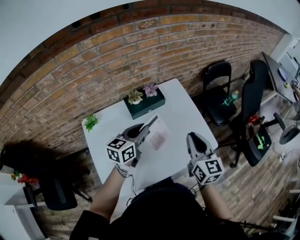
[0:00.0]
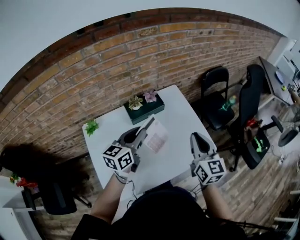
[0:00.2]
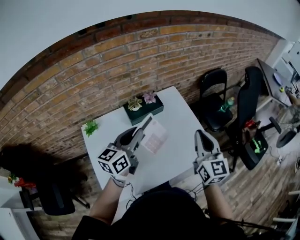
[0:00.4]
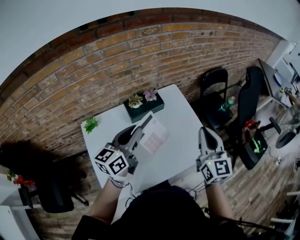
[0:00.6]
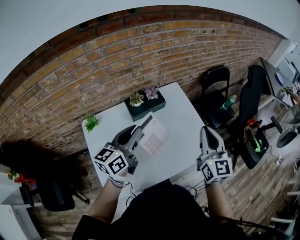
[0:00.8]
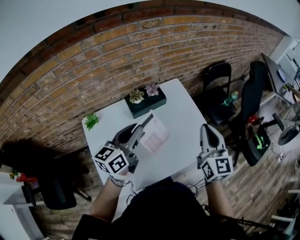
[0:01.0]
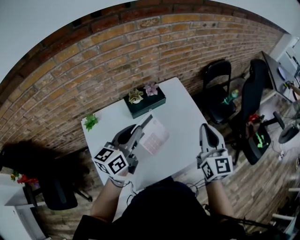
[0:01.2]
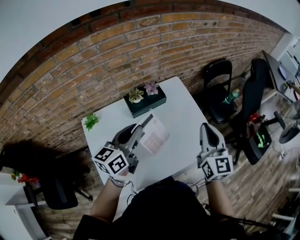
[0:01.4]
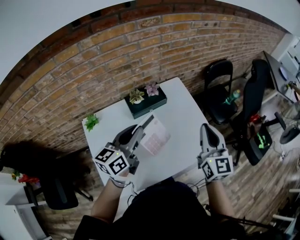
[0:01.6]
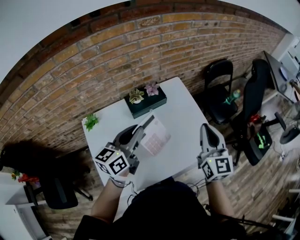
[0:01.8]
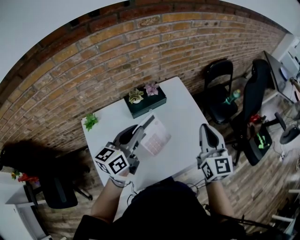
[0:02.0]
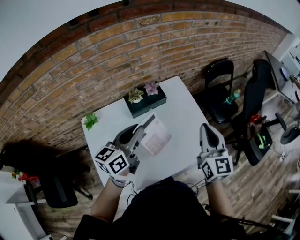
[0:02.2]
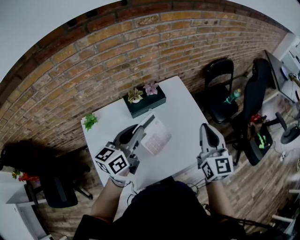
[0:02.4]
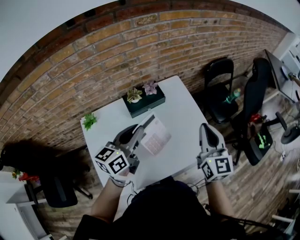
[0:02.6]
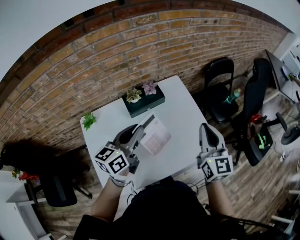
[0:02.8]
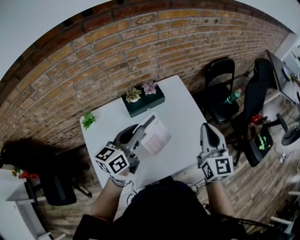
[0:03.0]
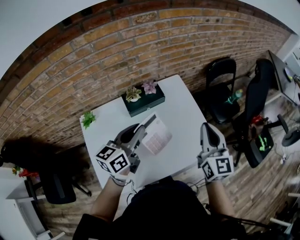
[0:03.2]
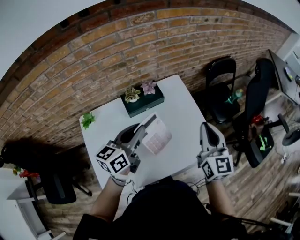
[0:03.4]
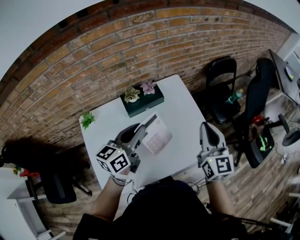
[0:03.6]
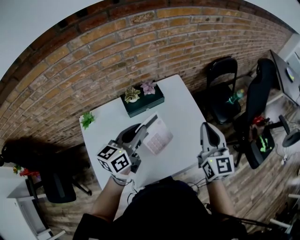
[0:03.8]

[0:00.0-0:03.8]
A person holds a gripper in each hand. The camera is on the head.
0.0 to 1.2 s: Both grippers travel together upward, some 5 cm.
1.2 to 2.6 s: The grippers move only a little.
2.6 to 3.8 s: There are only small adjustments of the grippers.

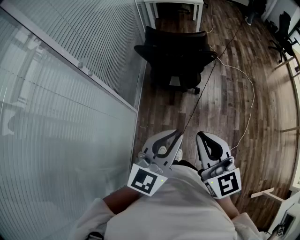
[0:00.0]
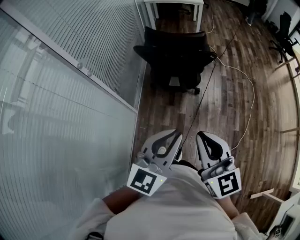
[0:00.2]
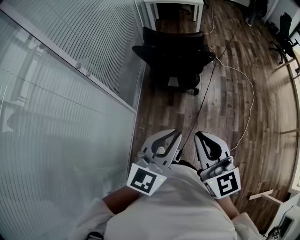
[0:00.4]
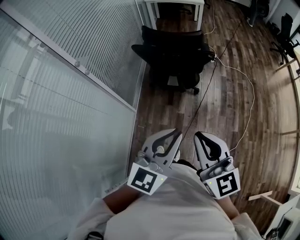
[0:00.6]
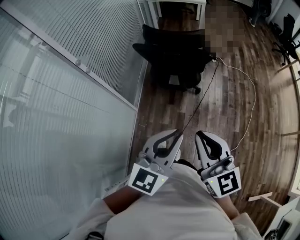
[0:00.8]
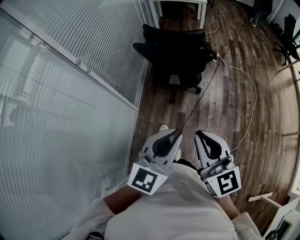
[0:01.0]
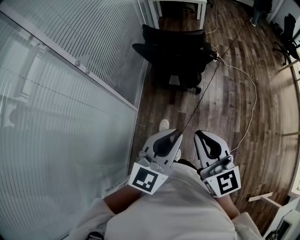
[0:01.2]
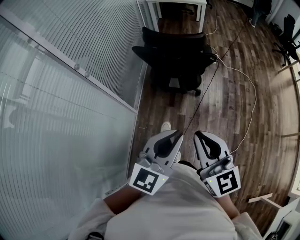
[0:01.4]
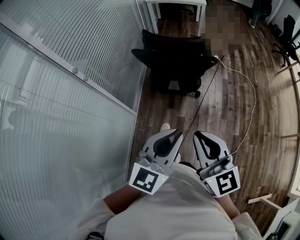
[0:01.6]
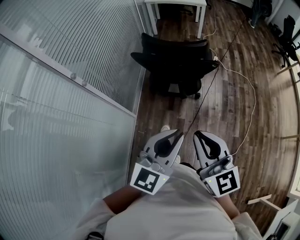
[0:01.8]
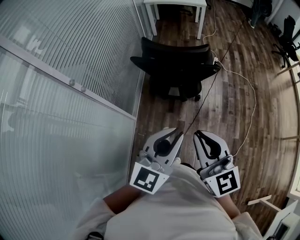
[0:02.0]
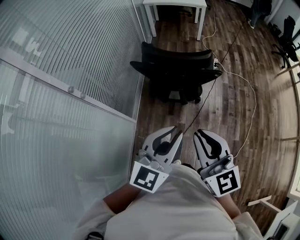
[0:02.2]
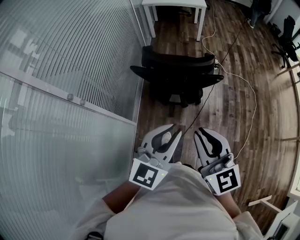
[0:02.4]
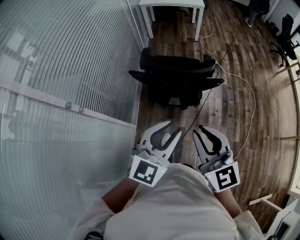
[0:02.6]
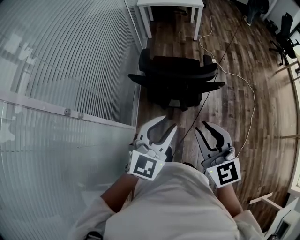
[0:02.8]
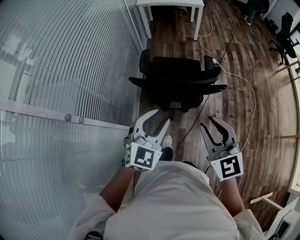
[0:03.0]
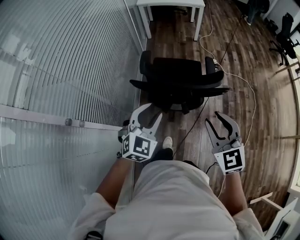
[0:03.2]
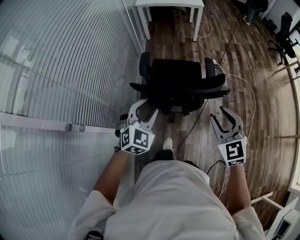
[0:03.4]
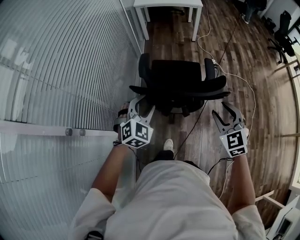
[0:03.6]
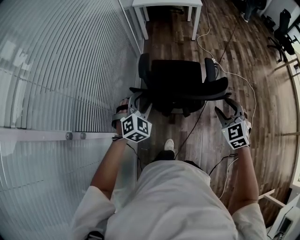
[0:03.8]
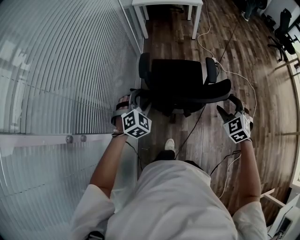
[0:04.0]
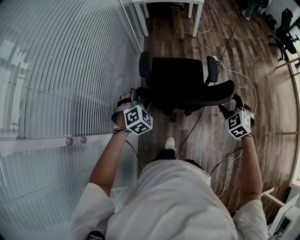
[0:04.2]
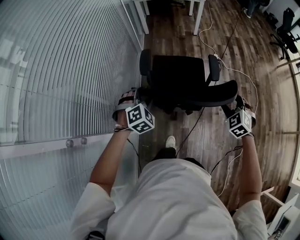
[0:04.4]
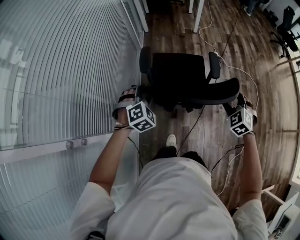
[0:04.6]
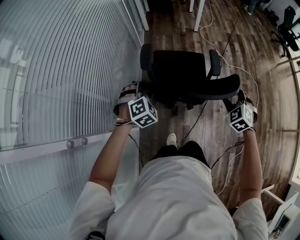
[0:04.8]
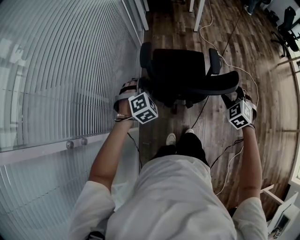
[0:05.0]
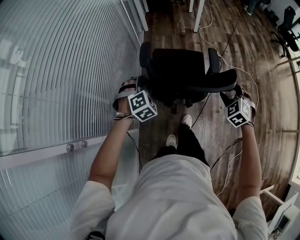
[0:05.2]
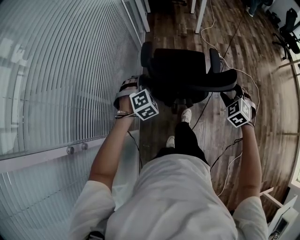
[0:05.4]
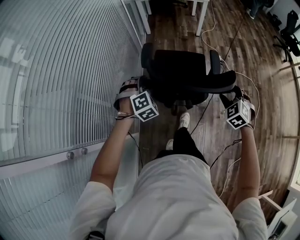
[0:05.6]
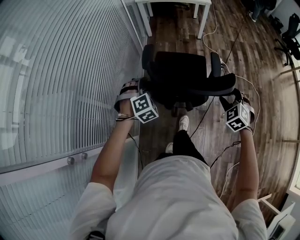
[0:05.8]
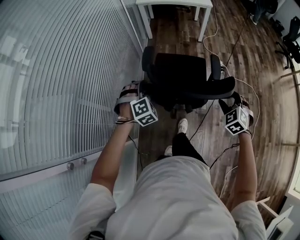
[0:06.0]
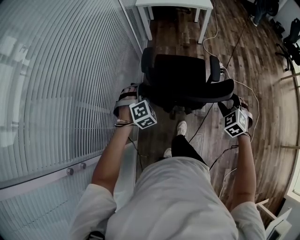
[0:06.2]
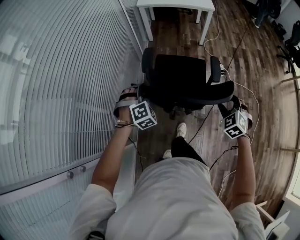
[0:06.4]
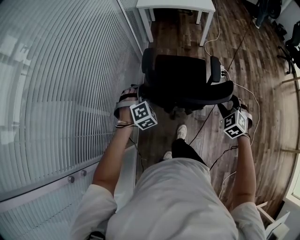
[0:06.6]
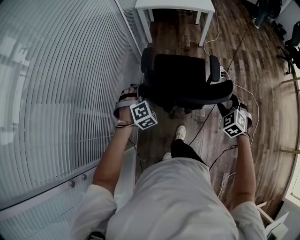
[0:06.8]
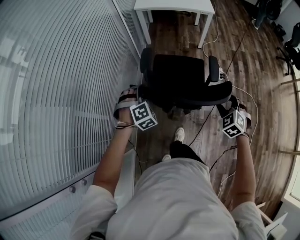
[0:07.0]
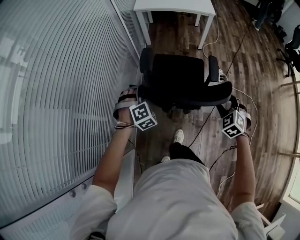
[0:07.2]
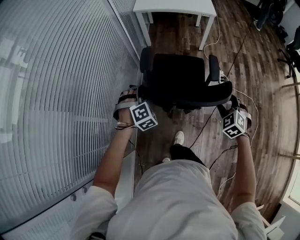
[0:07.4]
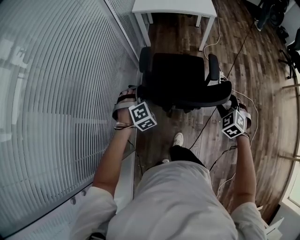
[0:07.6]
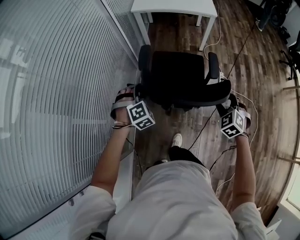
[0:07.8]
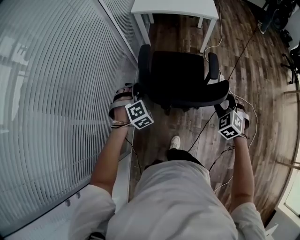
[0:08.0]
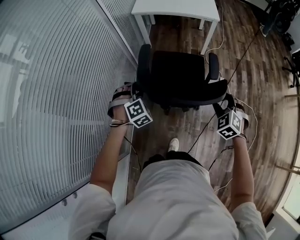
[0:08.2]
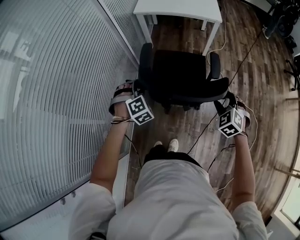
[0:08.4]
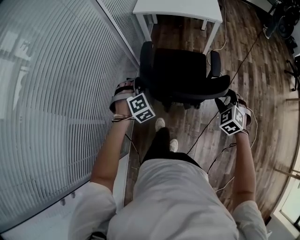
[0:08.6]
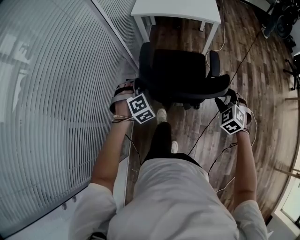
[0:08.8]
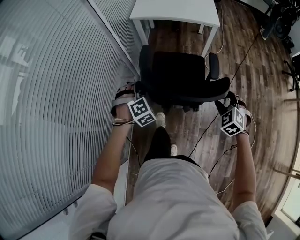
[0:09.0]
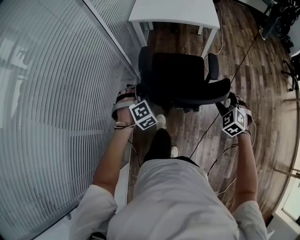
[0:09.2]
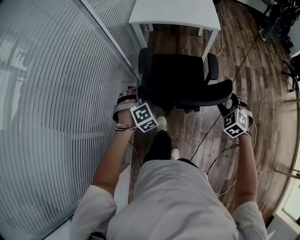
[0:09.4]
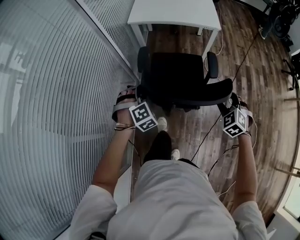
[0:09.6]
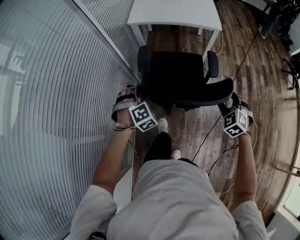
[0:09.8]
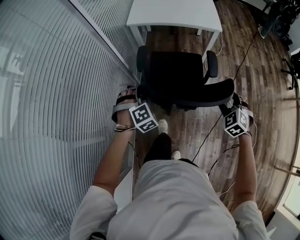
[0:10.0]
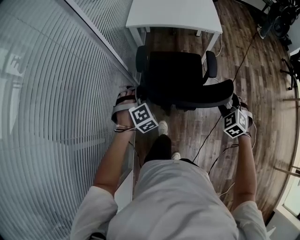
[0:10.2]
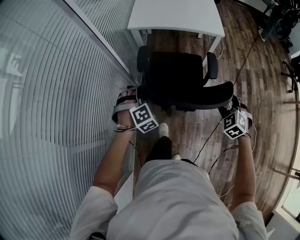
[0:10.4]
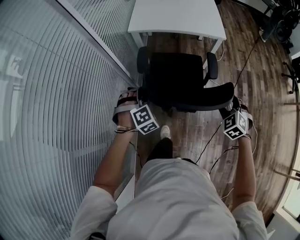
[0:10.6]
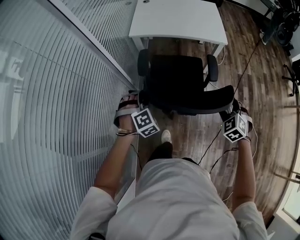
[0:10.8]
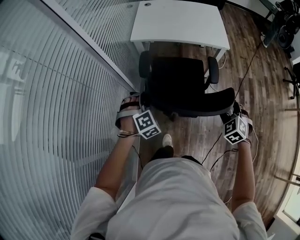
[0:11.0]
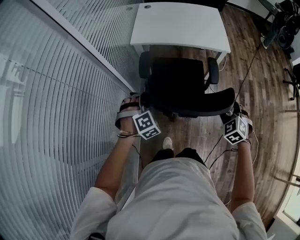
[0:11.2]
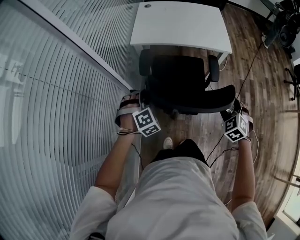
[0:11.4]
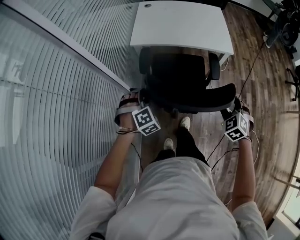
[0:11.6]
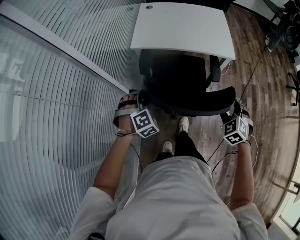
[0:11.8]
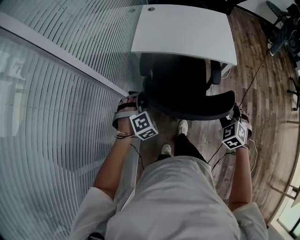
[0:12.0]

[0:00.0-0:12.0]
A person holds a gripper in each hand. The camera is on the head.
0.0 to 1.6 s: The left gripper moves roughly 5 cm. Meanwhile the right gripper is displaced forward by approximately 5 cm.
1.6 to 3.0 s: The two grippers go roughly 25 cm forward.
3.0 to 4.4 s: The right gripper shifts some 30 cm downward, forward and to the right, angles its fingers downward, by approximately 30 degrees, and opens; the left gripper is displaced forward, downward and to the left by approximately 25 cm, and changes its angle by roughly 40 degrees.
4.4 to 6.0 s: The two grippers go roughly 15 cm forward.
6.0 to 7.6 s: Both grippers move forward, approximately 20 cm.
7.6 to 9.0 s: The grippers both shift forward and to the right by some 15 cm.
9.0 to 10.4 s: Both grippers move forward, approximately 15 cm.
10.4 to 12.0 s: Both grippers travel together forward, some 20 cm.

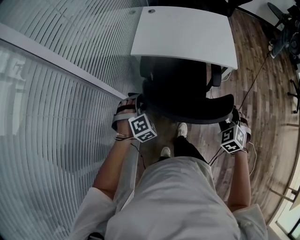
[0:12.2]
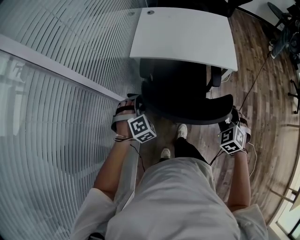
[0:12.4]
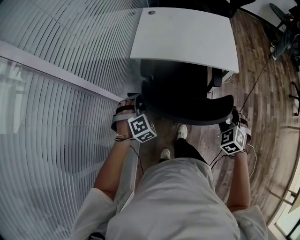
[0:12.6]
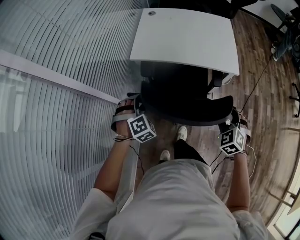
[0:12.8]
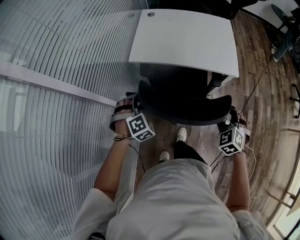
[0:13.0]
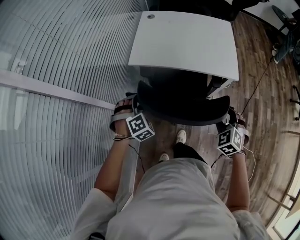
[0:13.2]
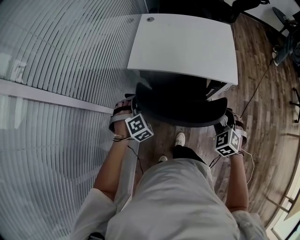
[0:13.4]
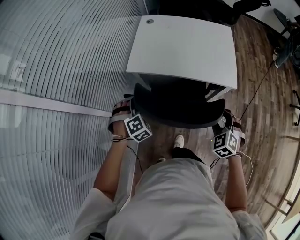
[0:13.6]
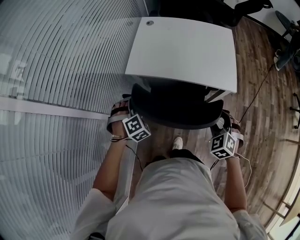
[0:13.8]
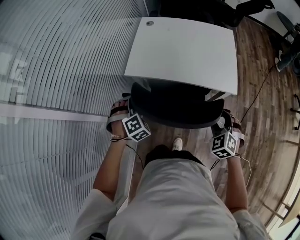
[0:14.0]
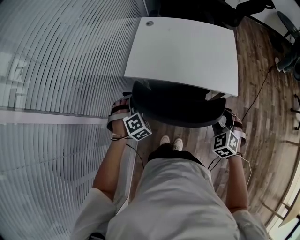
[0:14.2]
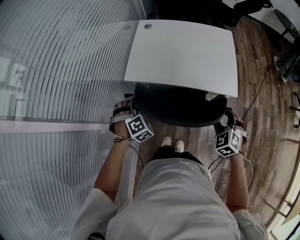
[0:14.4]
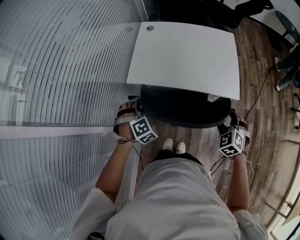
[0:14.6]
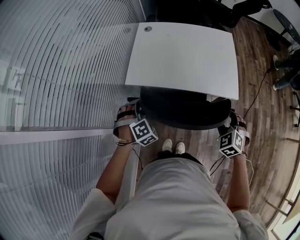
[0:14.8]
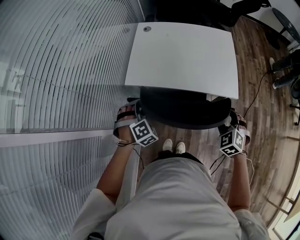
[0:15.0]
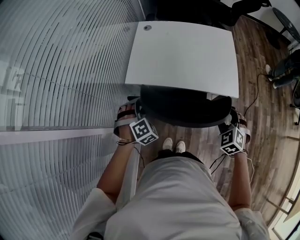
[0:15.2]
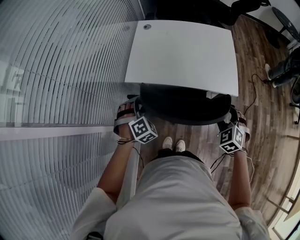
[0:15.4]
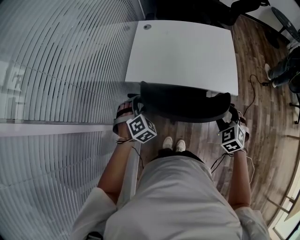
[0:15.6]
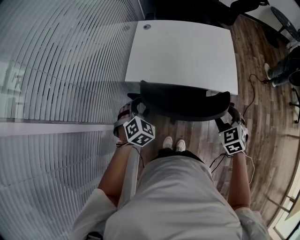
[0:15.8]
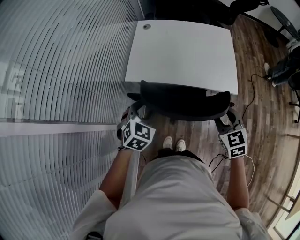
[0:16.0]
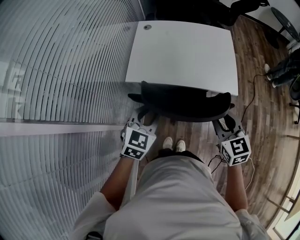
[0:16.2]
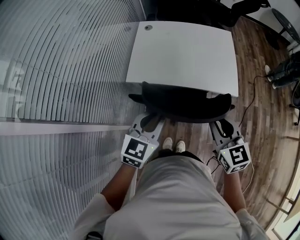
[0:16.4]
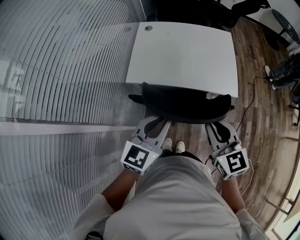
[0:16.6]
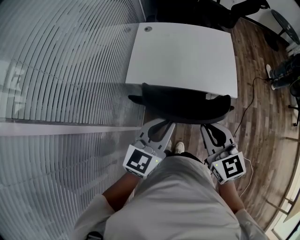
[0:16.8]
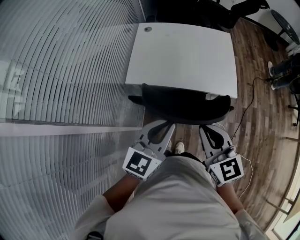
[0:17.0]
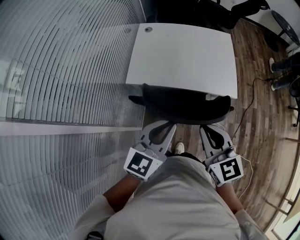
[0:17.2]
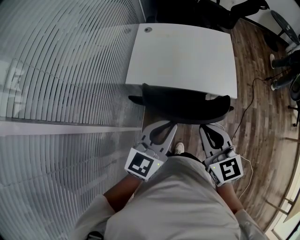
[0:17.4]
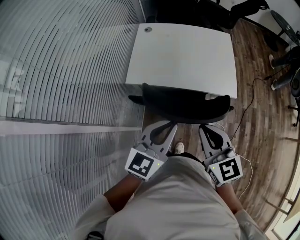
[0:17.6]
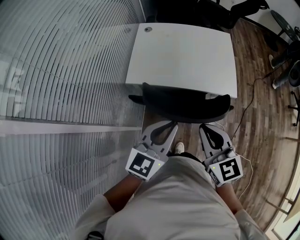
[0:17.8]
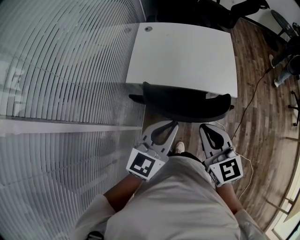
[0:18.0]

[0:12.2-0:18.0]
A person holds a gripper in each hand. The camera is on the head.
12.2 to 13.6 s: The grippers both shift forward by about 10 cm.
13.6 to 15.0 s: Both grippers move forward, roughly 10 cm.
15.0 to 16.6 s: The right gripper shifts about 20 cm upward and to the left, rotates roughly 50 degrees, and closes up. Meanwhile the left gripper is displaced upward, to the right and backward by about 25 cm, tilts its fingers approximately 30 degrees upward, and closes up.
16.6 to 18.0 s: The right gripper changes place by roughly 5 cm.

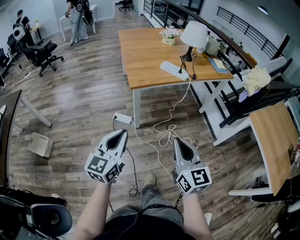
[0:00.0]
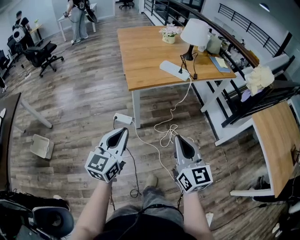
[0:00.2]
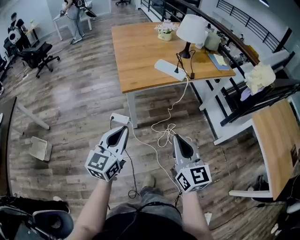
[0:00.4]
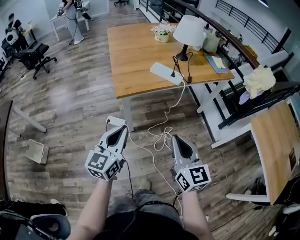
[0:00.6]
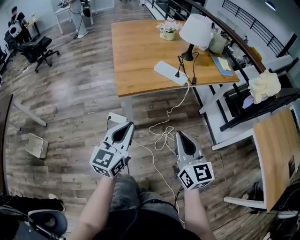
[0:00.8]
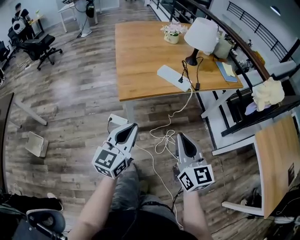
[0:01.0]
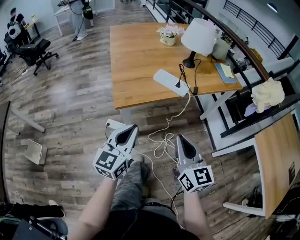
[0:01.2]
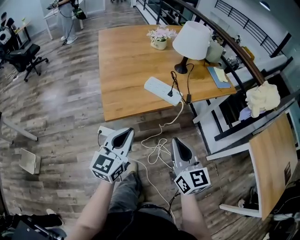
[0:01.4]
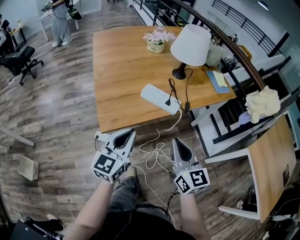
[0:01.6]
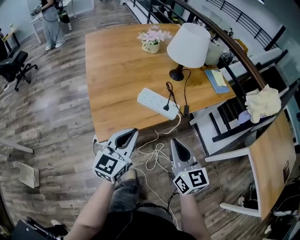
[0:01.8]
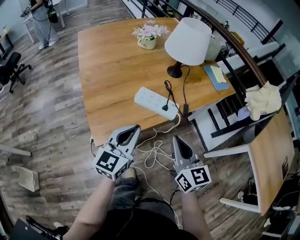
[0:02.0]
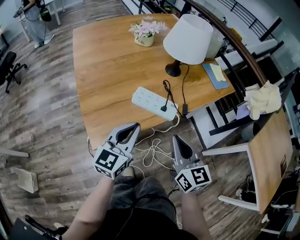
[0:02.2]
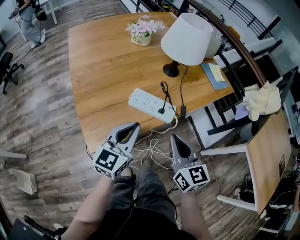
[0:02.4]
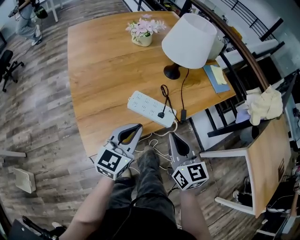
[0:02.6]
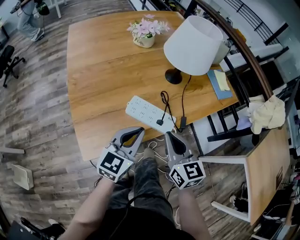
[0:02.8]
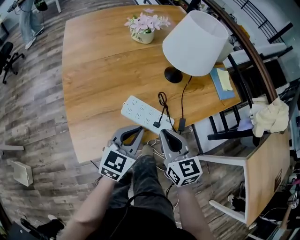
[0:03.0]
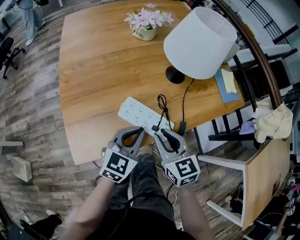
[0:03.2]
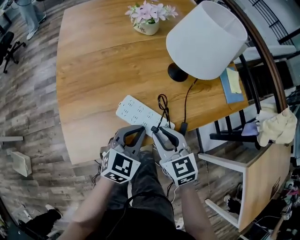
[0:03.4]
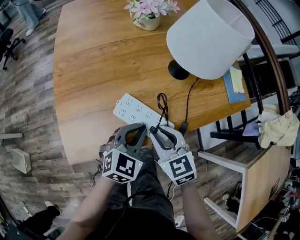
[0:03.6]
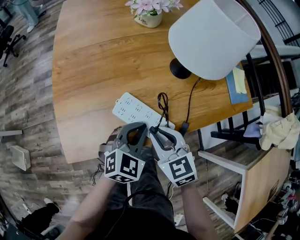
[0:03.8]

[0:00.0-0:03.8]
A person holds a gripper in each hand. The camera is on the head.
0.0 to 1.2 s: The right gripper moves forward, roughly 20 cm. The left gripper is displaced forward and to the right by roughly 25 cm.
1.2 to 2.6 s: Both grippers move forward, some 25 cm.
2.6 to 3.8 s: The left gripper goes roughly 15 cm downward, forward and to the right, and changes its angle by about 30 degrees. The right gripper is displaced forward and downward by about 15 cm, and rotates some 40 degrees.
